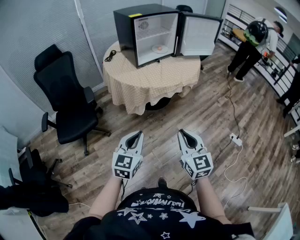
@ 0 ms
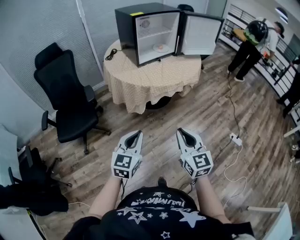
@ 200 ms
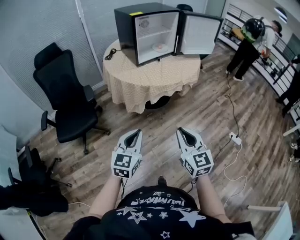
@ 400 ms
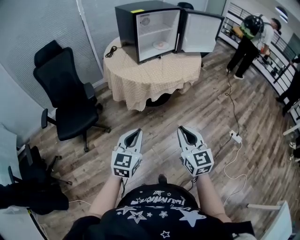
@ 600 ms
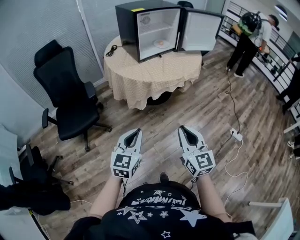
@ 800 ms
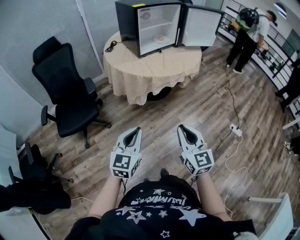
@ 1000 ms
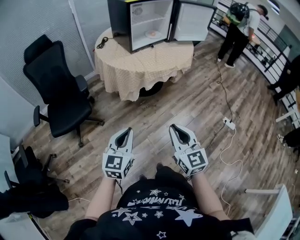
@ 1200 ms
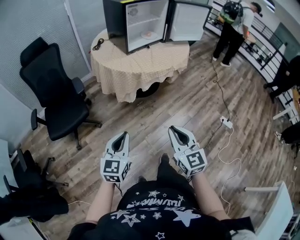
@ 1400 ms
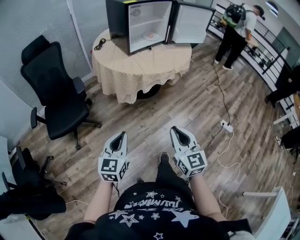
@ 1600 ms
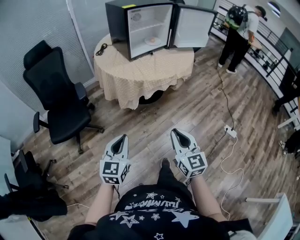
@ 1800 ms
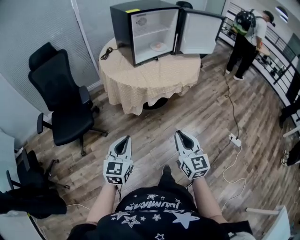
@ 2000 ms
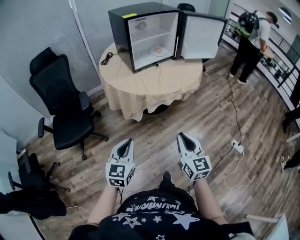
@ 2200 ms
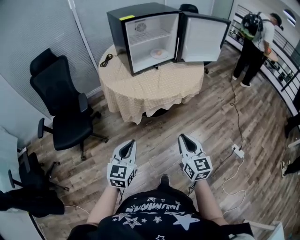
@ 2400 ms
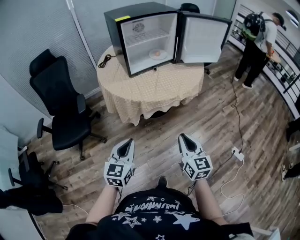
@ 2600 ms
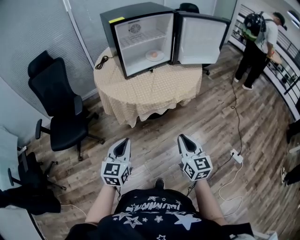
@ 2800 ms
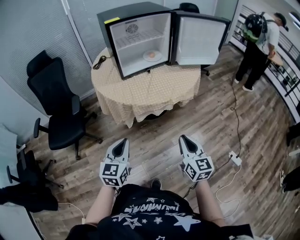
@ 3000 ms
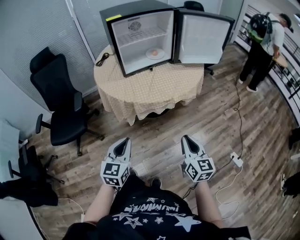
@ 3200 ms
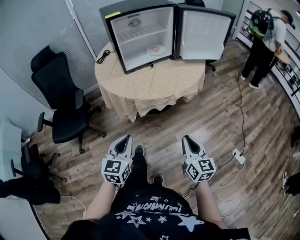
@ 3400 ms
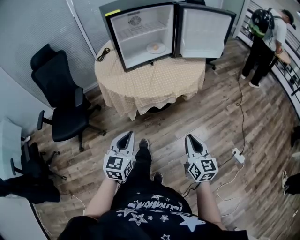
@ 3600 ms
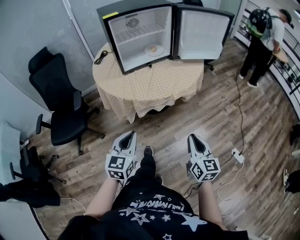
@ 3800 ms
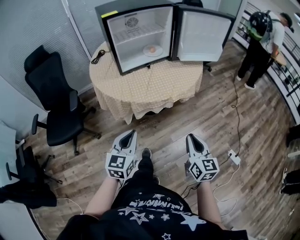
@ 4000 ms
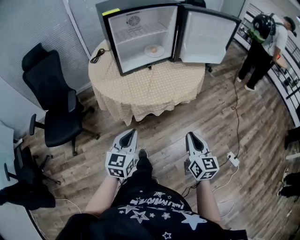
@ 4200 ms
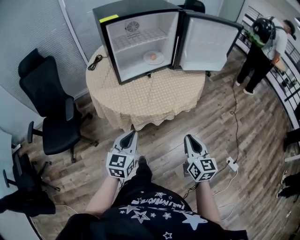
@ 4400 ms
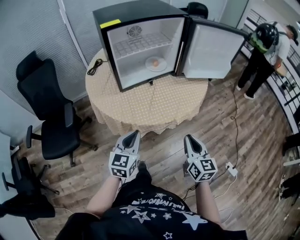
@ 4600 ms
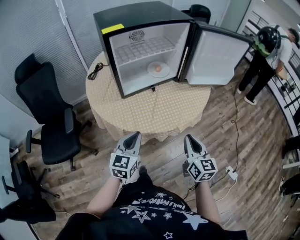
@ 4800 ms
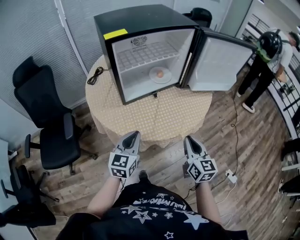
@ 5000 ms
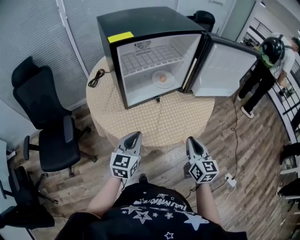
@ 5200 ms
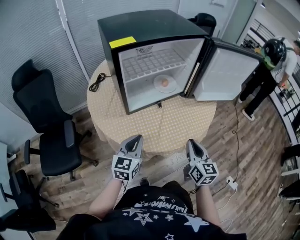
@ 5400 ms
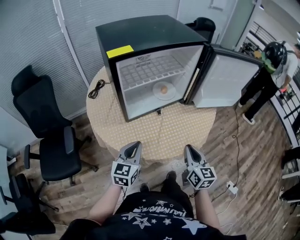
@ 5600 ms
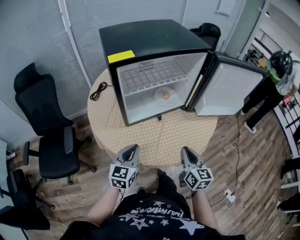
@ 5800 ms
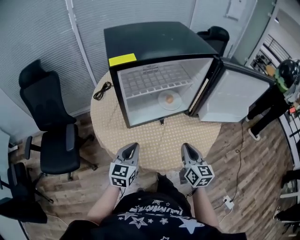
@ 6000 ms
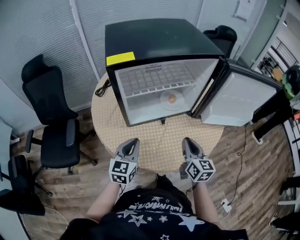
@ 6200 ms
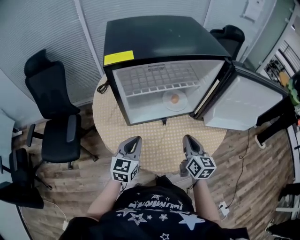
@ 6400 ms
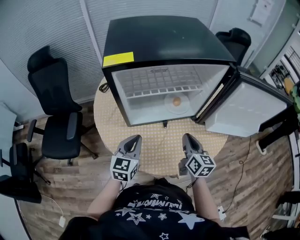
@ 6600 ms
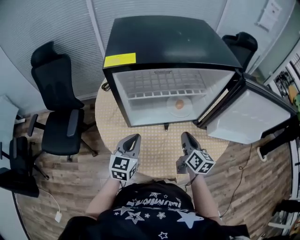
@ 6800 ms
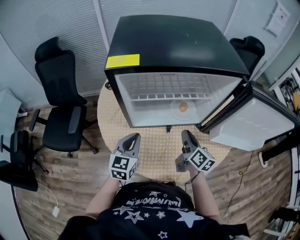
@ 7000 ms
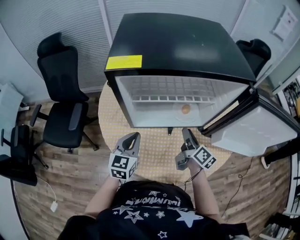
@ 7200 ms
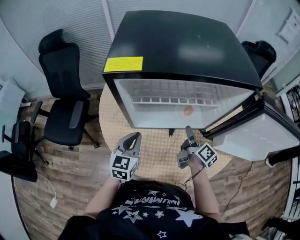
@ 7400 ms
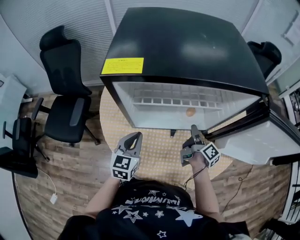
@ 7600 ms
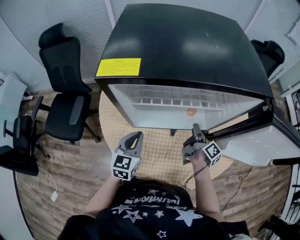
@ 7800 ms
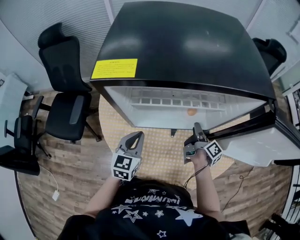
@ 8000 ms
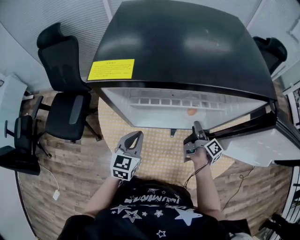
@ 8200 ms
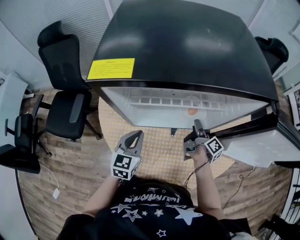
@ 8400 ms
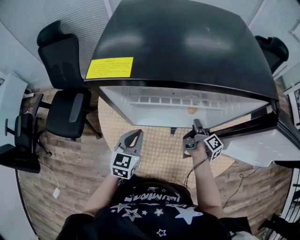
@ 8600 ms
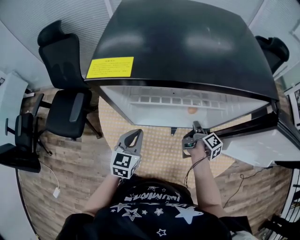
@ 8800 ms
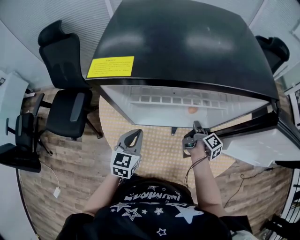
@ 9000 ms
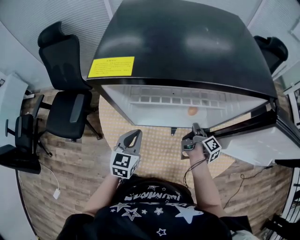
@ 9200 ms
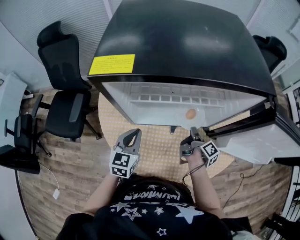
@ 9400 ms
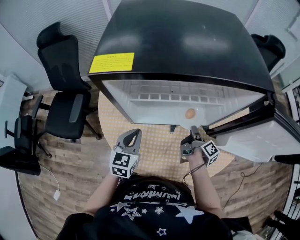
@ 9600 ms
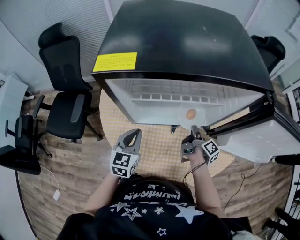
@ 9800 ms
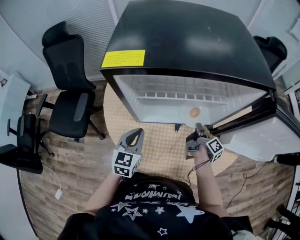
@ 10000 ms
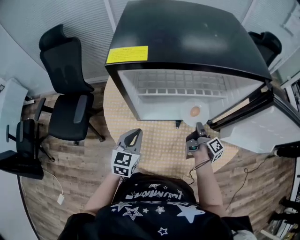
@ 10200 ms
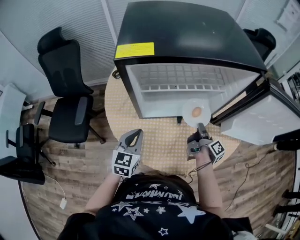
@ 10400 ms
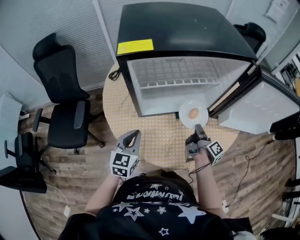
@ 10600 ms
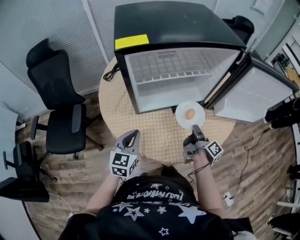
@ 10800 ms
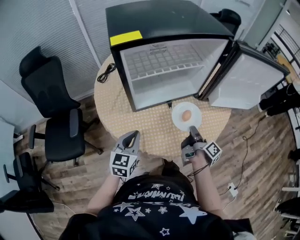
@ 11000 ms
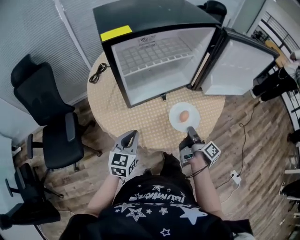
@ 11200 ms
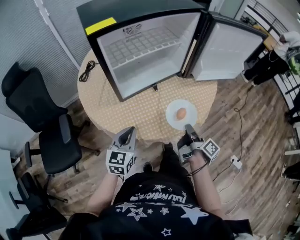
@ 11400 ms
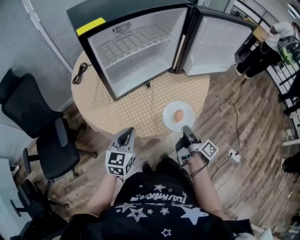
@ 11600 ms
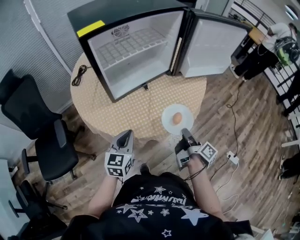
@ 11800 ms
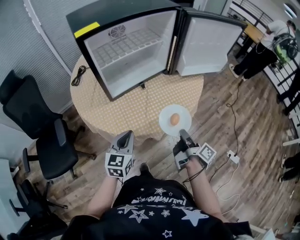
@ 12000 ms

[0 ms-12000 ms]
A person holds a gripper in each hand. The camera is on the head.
0 ms to 1600 ms: The left gripper travels to the left by about 10 cm. The right gripper changes place by roughly 5 cm.
1600 ms to 3000 ms: Both grippers travel together forward and to the right, some 30 cm.
3000 ms to 4400 ms: The grippers both shift forward by approximately 10 cm.
4400 ms to 6000 ms: The two grippers go roughly 25 cm forward.
6000 ms to 7600 ms: The right gripper goes approximately 25 cm forward, rotates around the line of its fingers by some 60 degrees, clockwise from behind, and opens; the left gripper travels forward by approximately 10 cm.
7600 ms to 9000 ms: The right gripper changes place by approximately 5 cm, and closes its fingers.
9000 ms to 10400 ms: The right gripper is displaced backward by some 10 cm. The left gripper moves backward, some 5 cm.
10400 ms to 12000 ms: The left gripper goes some 15 cm backward and to the right, and rotates roughly 30 degrees; the right gripper moves backward, roughly 35 cm.

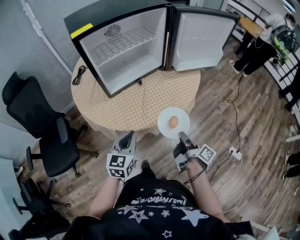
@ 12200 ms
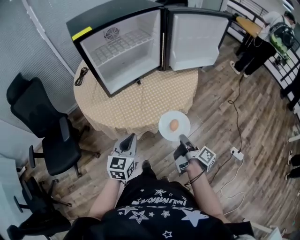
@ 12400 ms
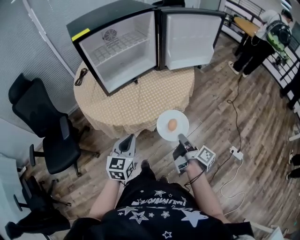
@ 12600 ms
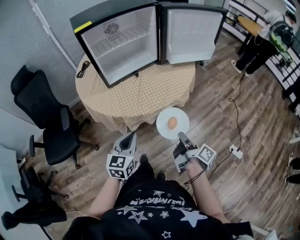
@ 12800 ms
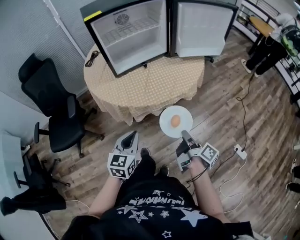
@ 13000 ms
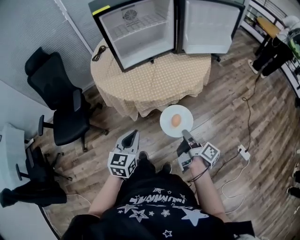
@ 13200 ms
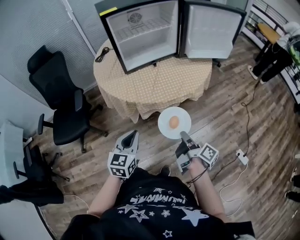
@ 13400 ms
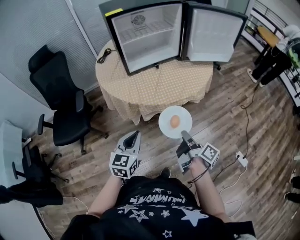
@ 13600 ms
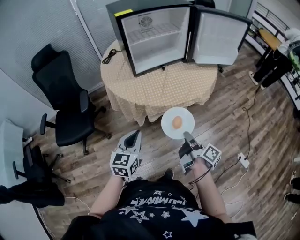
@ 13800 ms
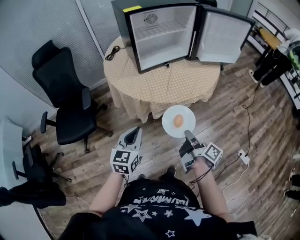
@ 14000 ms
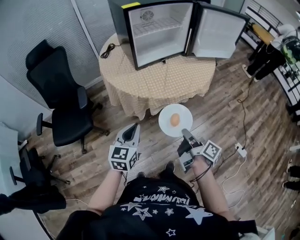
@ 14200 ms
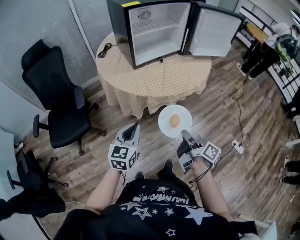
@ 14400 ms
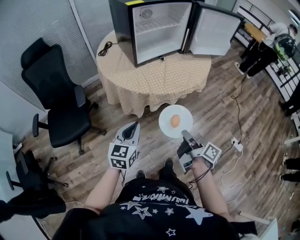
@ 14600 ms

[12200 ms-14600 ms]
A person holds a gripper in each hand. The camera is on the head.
12200 ms to 13400 ms: Both grippers move backward, roughly 15 cm.
13400 ms to 14600 ms: The right gripper travels to the left and backward by some 15 cm. The left gripper moves to the left, about 10 cm.

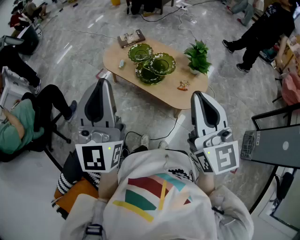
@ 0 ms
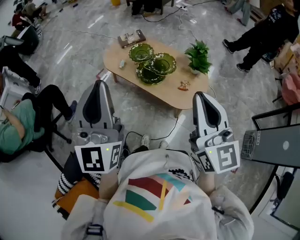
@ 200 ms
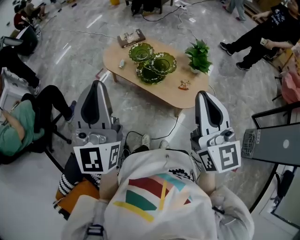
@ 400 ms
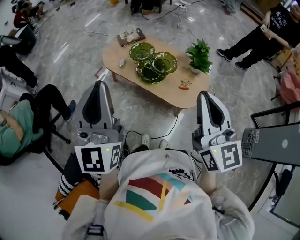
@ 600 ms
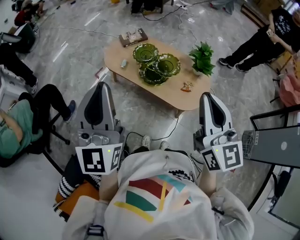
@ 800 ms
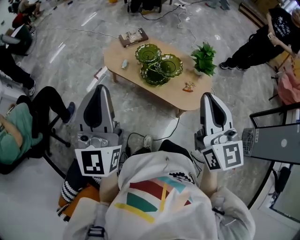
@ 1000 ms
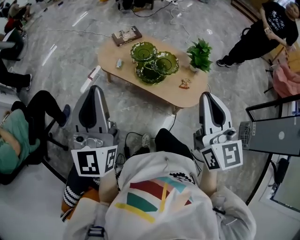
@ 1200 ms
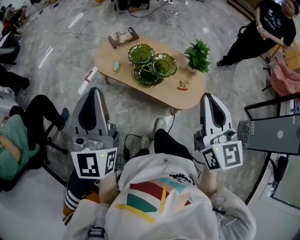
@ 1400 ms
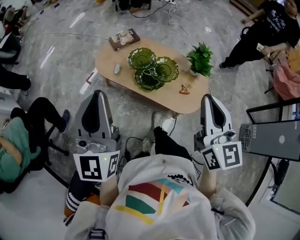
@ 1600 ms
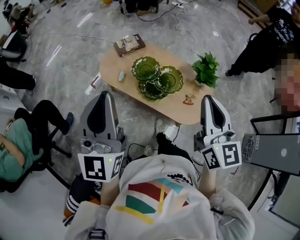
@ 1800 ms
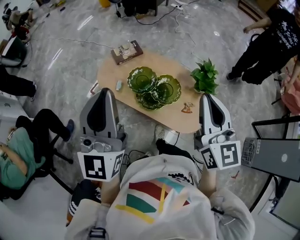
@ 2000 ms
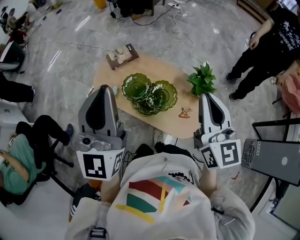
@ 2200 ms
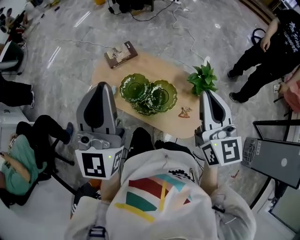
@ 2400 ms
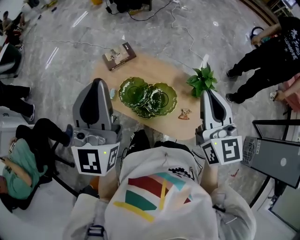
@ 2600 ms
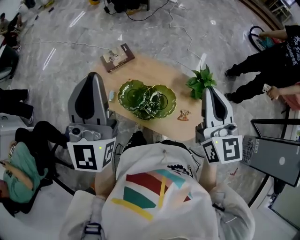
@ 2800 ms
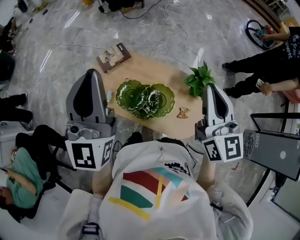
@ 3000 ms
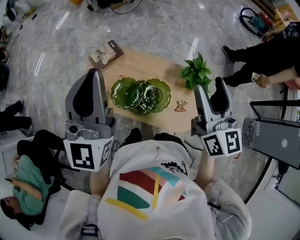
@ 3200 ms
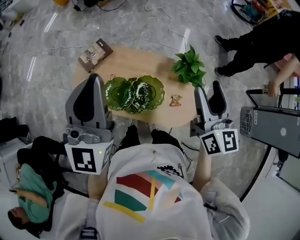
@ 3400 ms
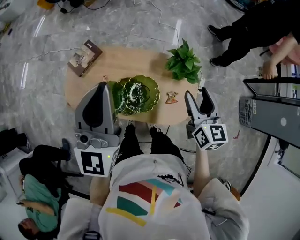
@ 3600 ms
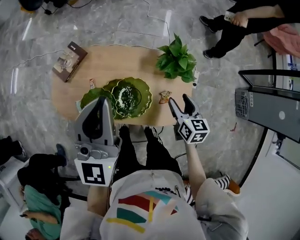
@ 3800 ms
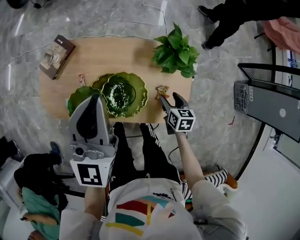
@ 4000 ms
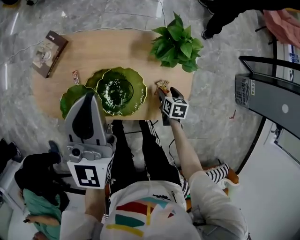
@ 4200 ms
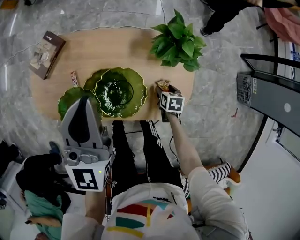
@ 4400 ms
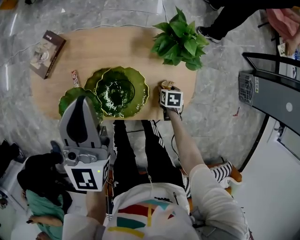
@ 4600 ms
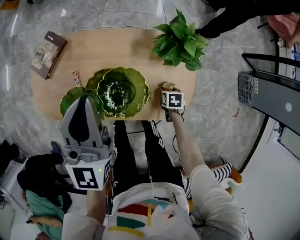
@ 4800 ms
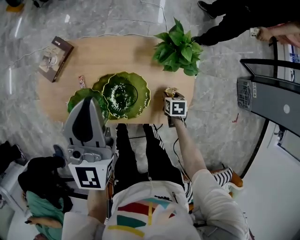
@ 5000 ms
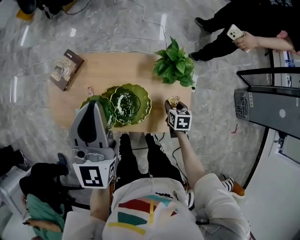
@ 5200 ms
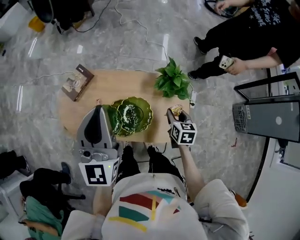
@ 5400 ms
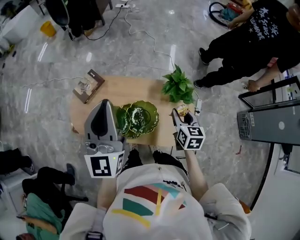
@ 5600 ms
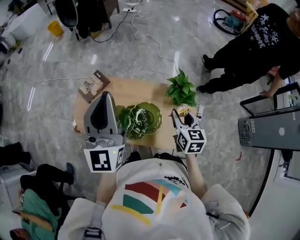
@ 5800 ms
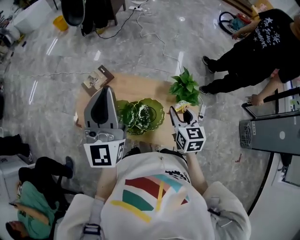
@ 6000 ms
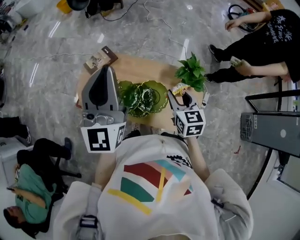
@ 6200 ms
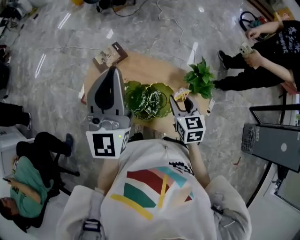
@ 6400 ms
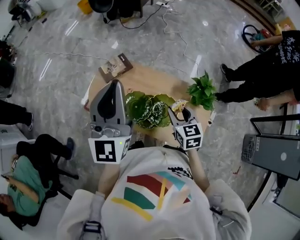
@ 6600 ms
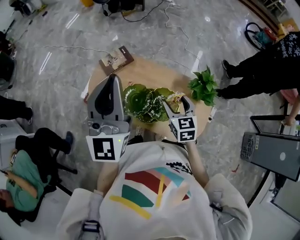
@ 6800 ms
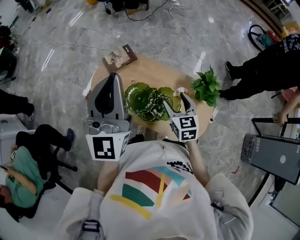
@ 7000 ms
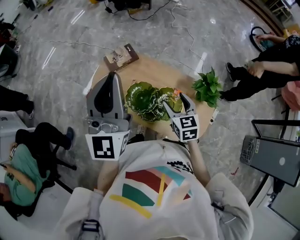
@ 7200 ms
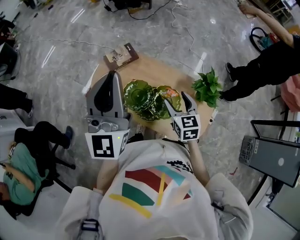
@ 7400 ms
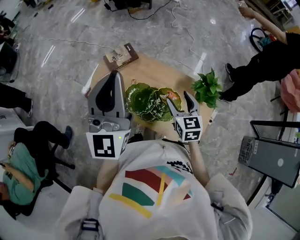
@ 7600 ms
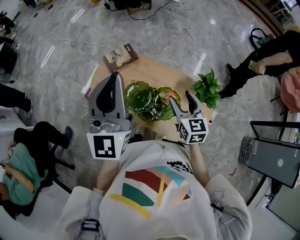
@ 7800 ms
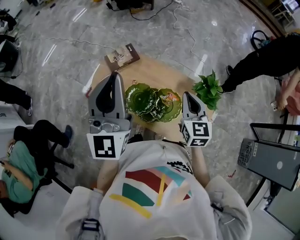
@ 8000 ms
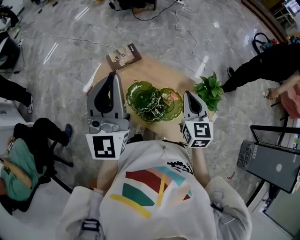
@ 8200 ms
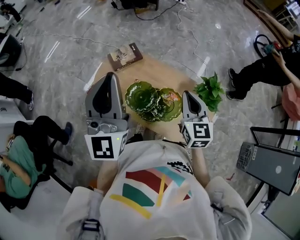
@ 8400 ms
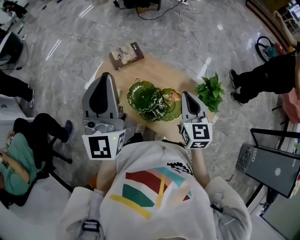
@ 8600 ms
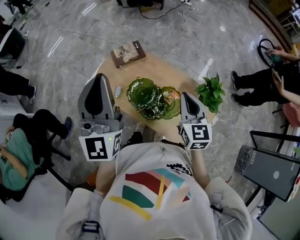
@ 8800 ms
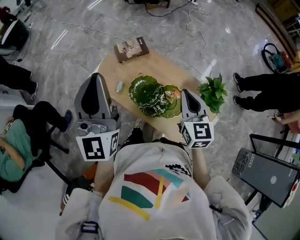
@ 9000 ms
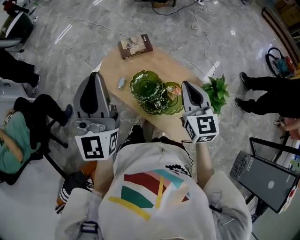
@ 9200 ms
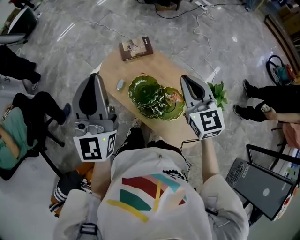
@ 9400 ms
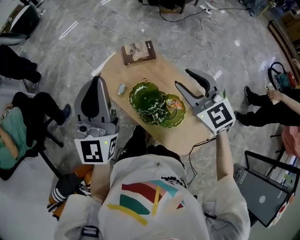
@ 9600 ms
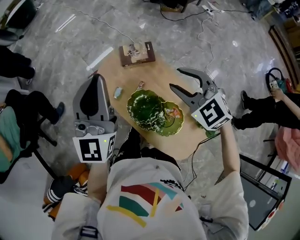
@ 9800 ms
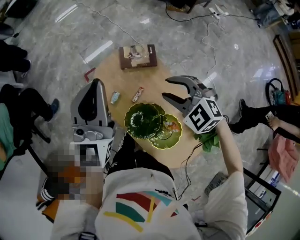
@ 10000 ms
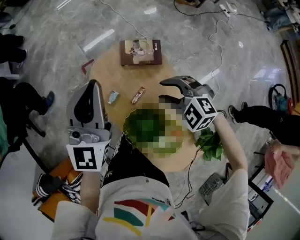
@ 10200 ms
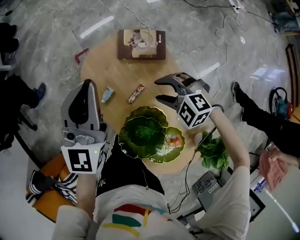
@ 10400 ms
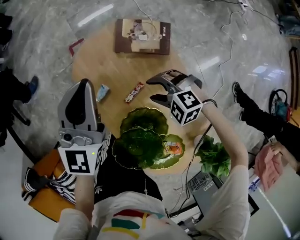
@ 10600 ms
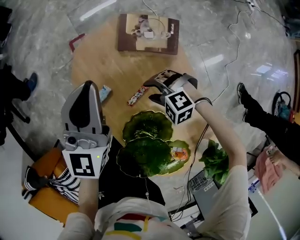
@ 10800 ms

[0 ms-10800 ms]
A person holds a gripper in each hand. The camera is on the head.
0 ms to 1600 ms: The right gripper goes roughly 10 cm forward. The left gripper moves forward and to the left, approximately 15 cm.
1600 ms to 3000 ms: Both grippers move forward, roughly 30 cm.
3000 ms to 4600 ms: The right gripper is displaced downward by roughly 60 cm, tilts its fingers approximately 70 degrees downward, and opens. The left gripper shifts approximately 30 cm downward, and rotates approximately 30 degrees.
4600 ms to 6200 ms: The right gripper shifts about 40 cm upward, and tilts its fingers roughly 50 degrees upward. The left gripper heads upward, covering about 25 cm, and swivels approximately 20 degrees.
6200 ms to 7800 ms: Both grippers travel together to the left, about 5 cm. The right gripper opens up.
7800 ms to 9200 ms: The right gripper is displaced upward by some 10 cm, and closes; the left gripper shifts about 10 cm to the left and backward.
9200 ms to 10800 ms: The grippers both shift downward by some 40 cm. The left gripper swivels roughly 30 degrees, while the right gripper tilts its fingers some 50 degrees downward, and opens up.
